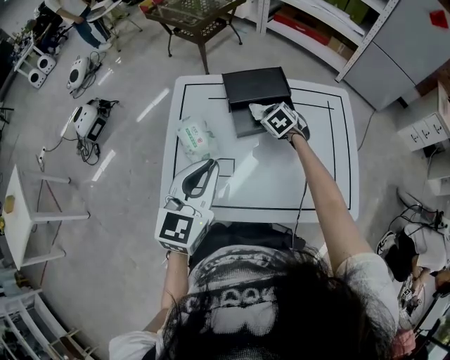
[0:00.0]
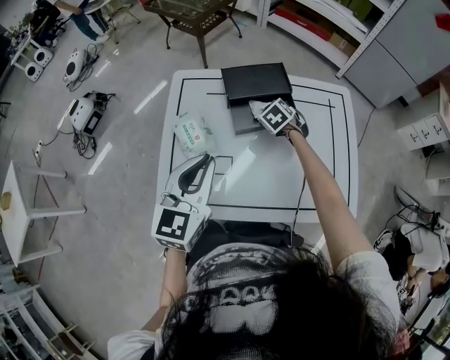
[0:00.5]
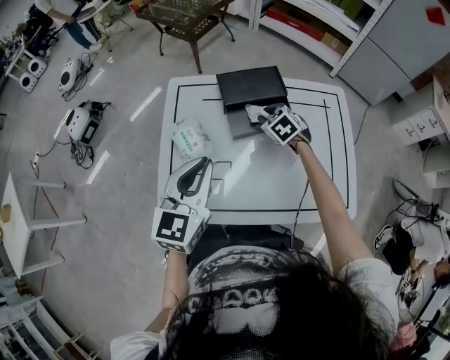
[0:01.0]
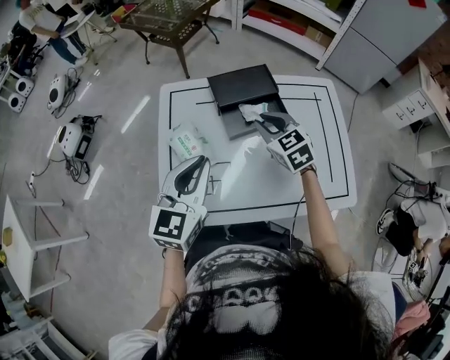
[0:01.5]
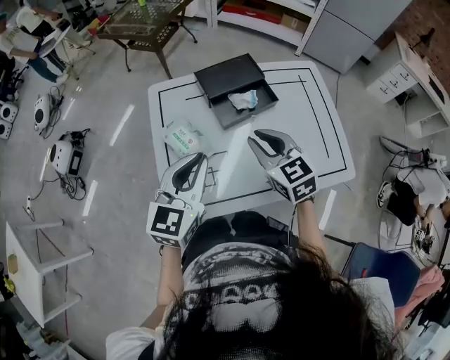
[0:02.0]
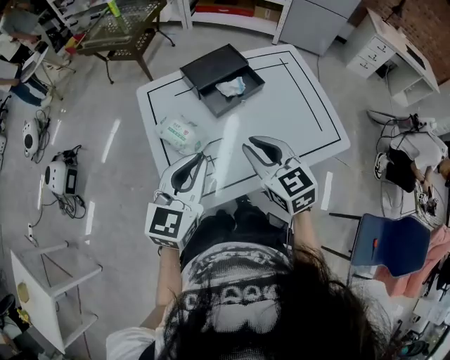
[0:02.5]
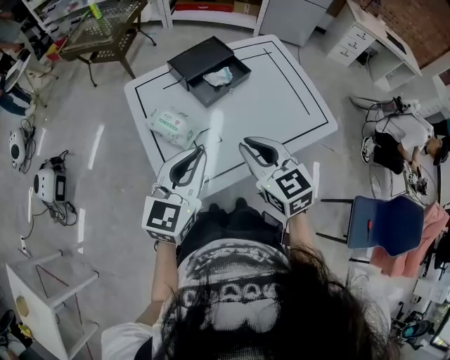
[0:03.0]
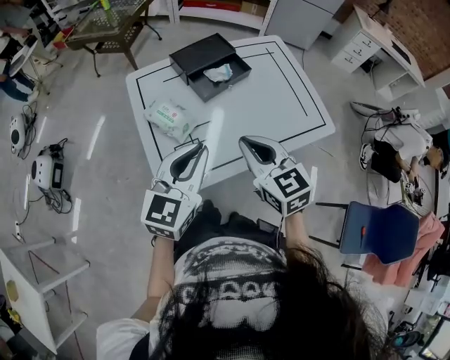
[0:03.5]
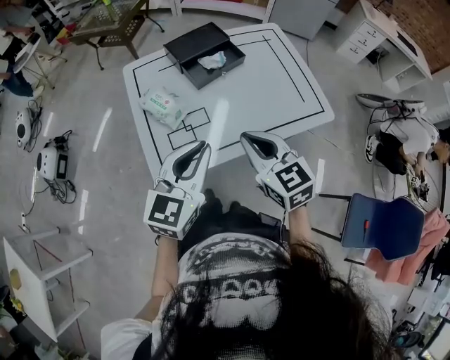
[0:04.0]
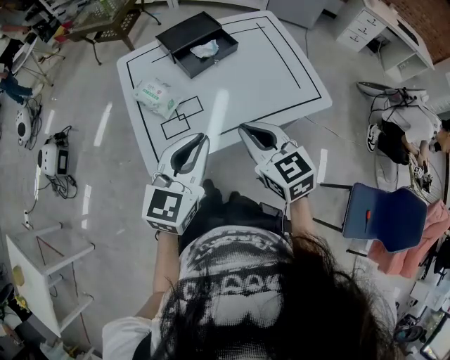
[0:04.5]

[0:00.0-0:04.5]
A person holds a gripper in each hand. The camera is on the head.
0:00.0 to 0:02.0: The right gripper is displaced backward and upward by some 25 cm, and swivels roughly 40 degrees.
0:02.0 to 0:04.5: The left gripper heads backward and to the right, covering approximately 20 cm, while the right gripper is displaced backward by some 20 cm.

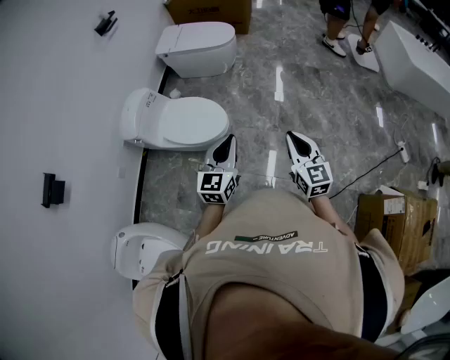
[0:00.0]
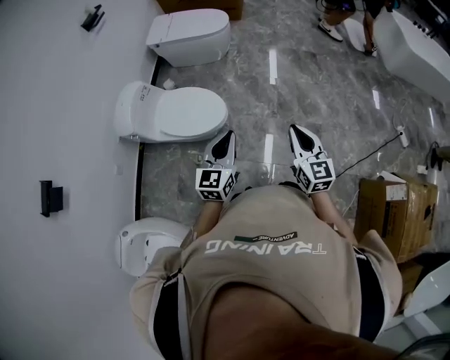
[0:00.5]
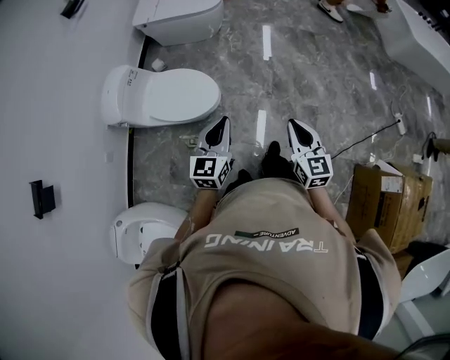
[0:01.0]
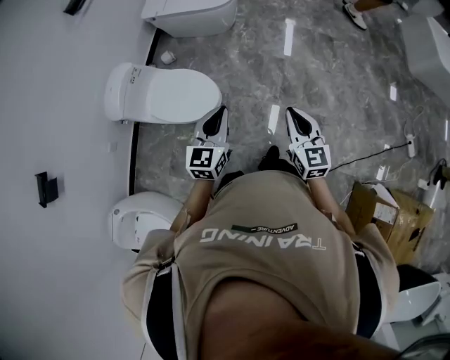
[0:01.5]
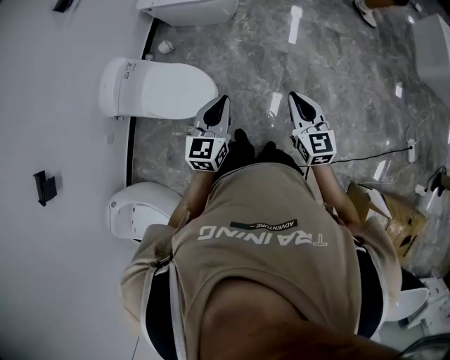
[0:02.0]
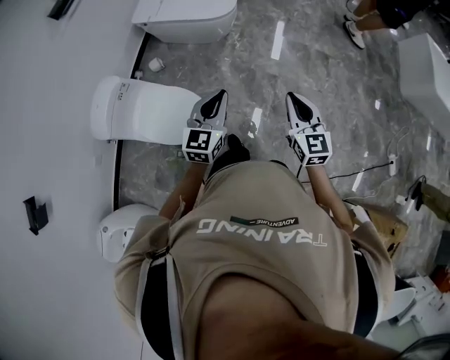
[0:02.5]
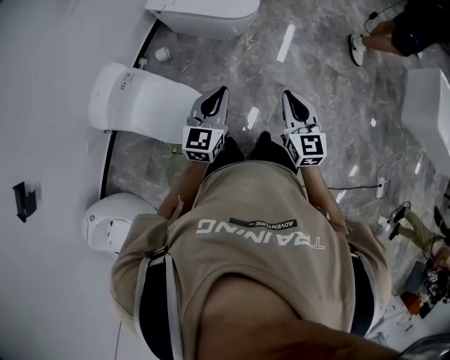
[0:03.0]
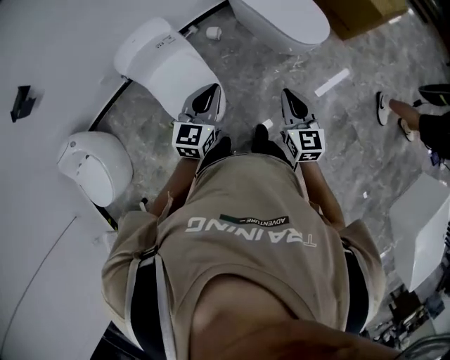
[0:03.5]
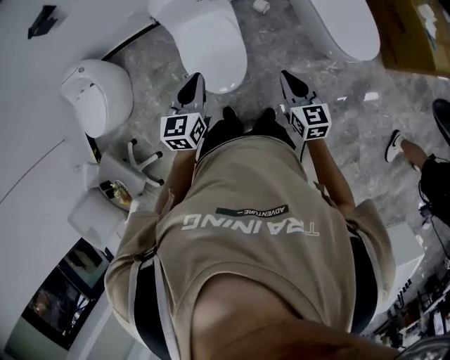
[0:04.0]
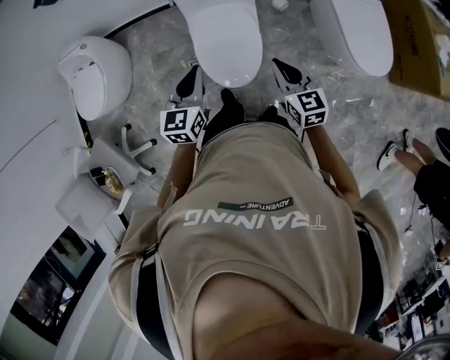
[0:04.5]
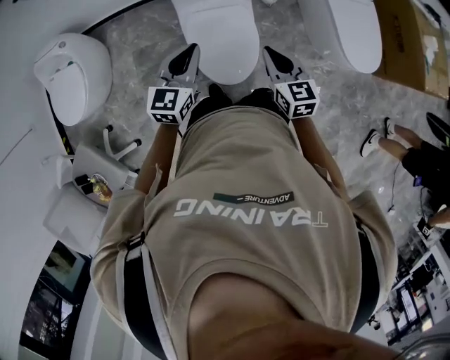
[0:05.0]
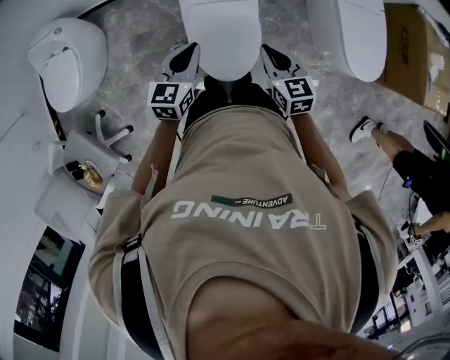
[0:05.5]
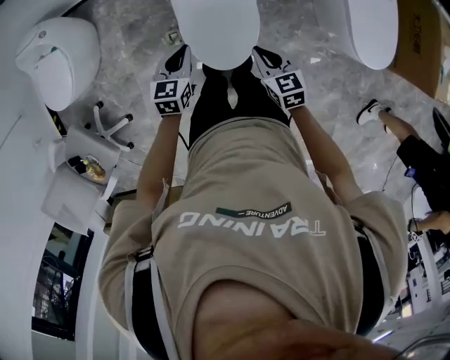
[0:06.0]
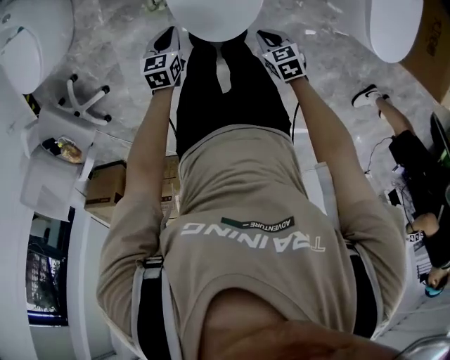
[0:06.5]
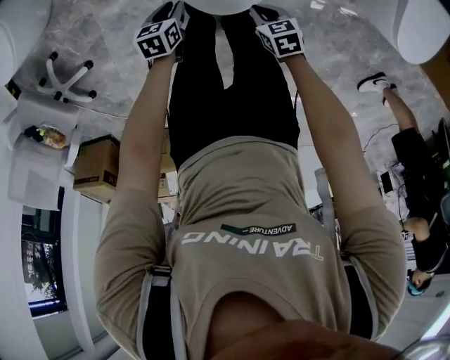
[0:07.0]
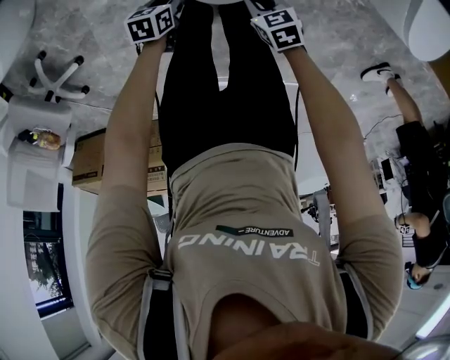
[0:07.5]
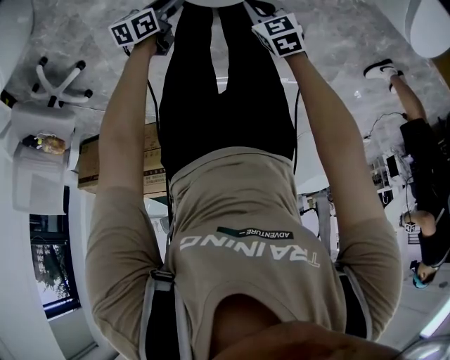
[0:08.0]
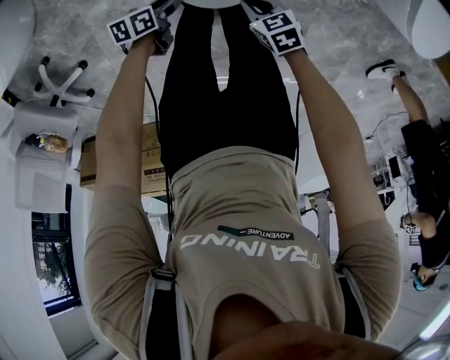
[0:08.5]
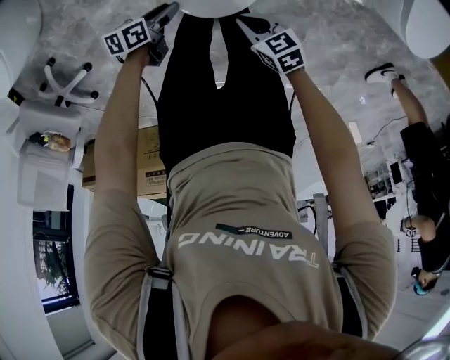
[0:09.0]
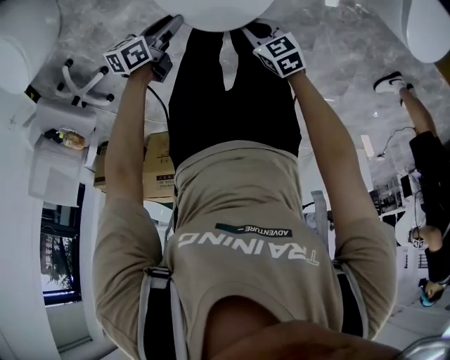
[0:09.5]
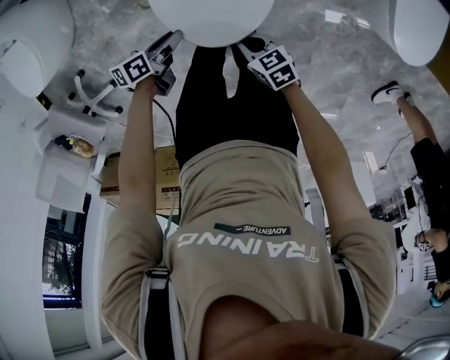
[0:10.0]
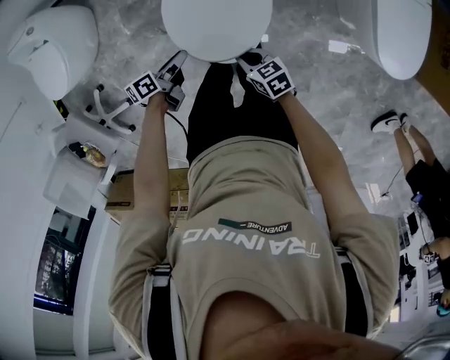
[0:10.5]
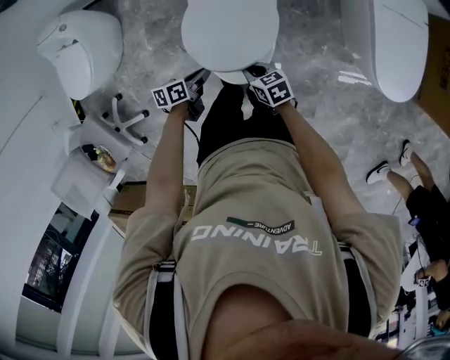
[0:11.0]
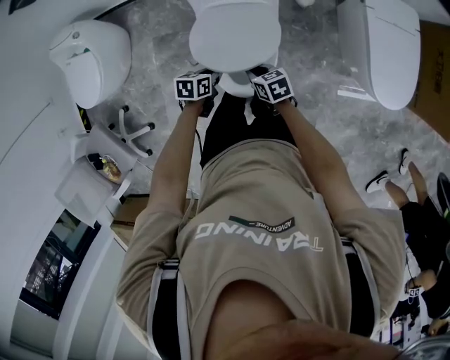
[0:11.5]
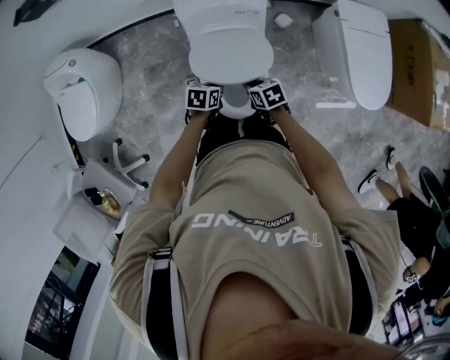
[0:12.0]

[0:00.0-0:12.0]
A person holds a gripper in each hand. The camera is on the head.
0:00.0 to 0:02.0: Both grippers travel together forward, some 25 cm.
0:02.0 to 0:04.0: The right gripper changes place by approximately 40 cm, and changes its angle by about 60 degrees. Meanwhile the left gripper changes place by roughly 25 cm, and swivels some 70 degrees.
0:04.0 to 0:06.0: The right gripper travels to the left, forward and downward by roughly 25 cm, and changes its angle by roughly 30 degrees; the left gripper is displaced downward, to the left and forward by approximately 25 cm.
0:06.0 to 0:08.0: The two grippers go about 35 cm downward. The left gripper rolls counterclockwise, seen from behind, by some 40 degrees, and opens; the right gripper changes its angle by some 30 degrees.
0:08.0 to 0:10.0: Both grippers move upward, roughly 15 cm.
0:10.0 to 0:12.0: The right gripper moves forward and upward, approximately 20 cm; the left gripper moves upward, forward and to the right, roughly 20 cm, rotates approximately 40 degrees, and closes its fingers.

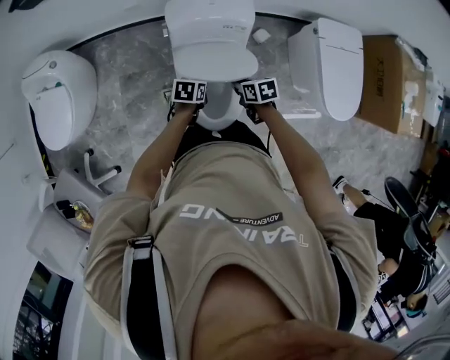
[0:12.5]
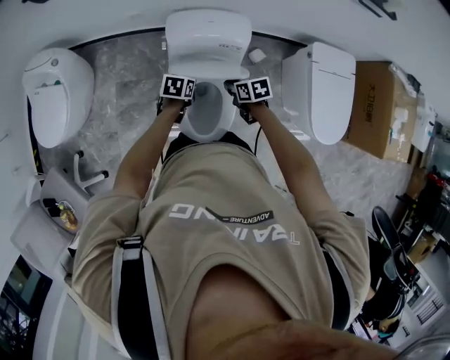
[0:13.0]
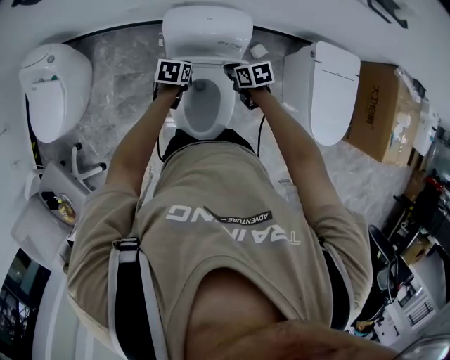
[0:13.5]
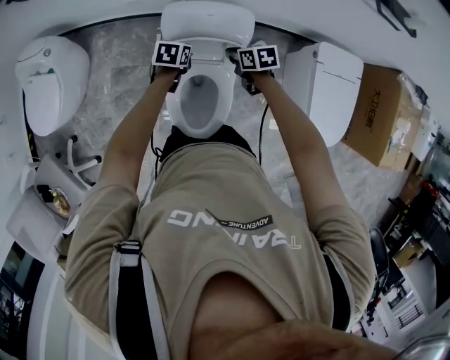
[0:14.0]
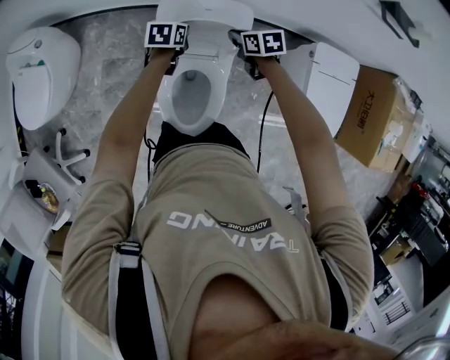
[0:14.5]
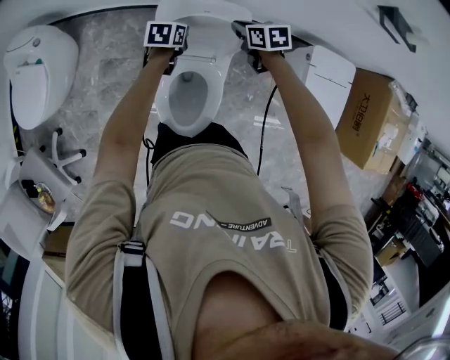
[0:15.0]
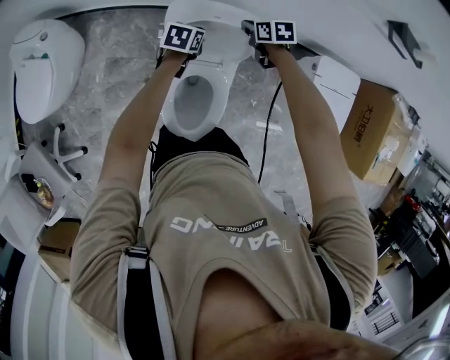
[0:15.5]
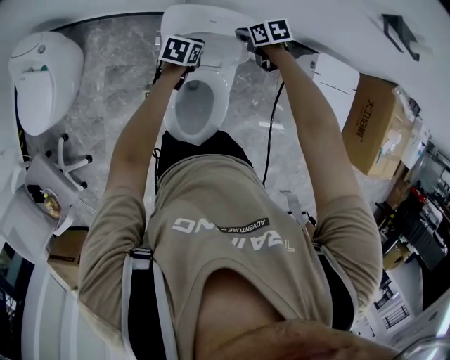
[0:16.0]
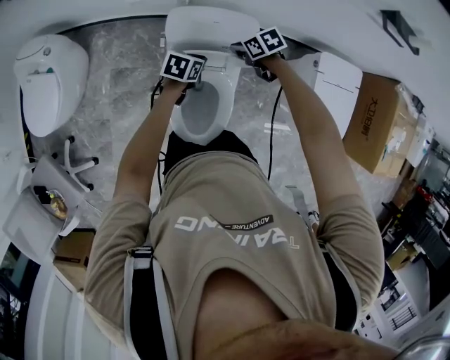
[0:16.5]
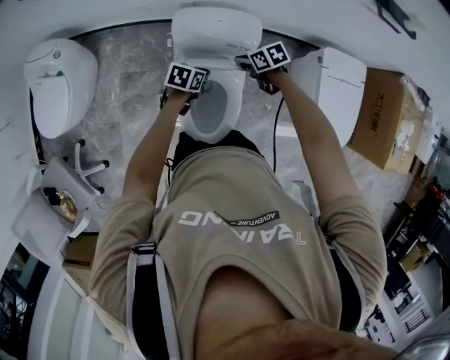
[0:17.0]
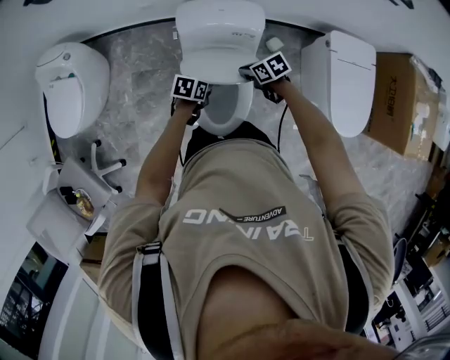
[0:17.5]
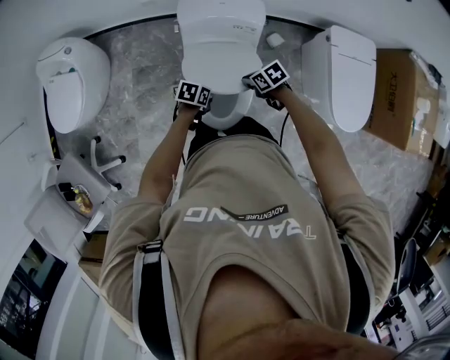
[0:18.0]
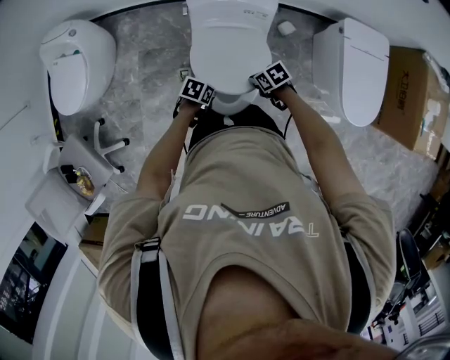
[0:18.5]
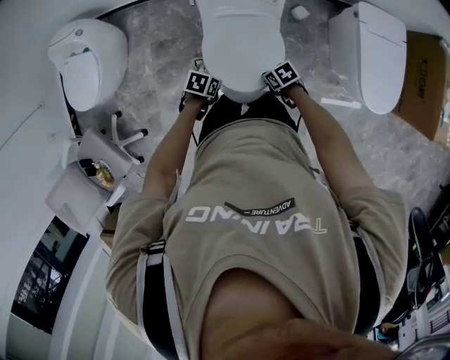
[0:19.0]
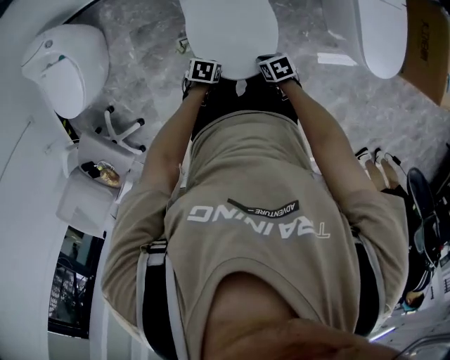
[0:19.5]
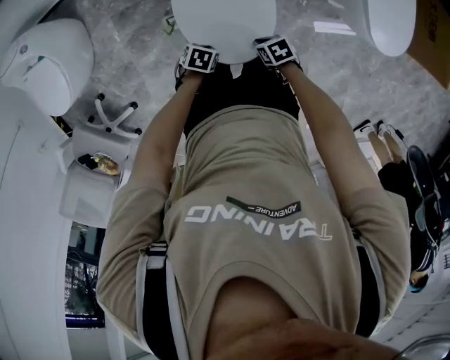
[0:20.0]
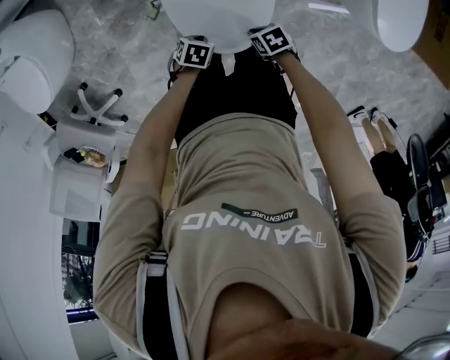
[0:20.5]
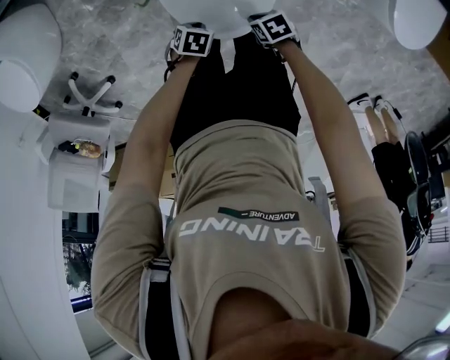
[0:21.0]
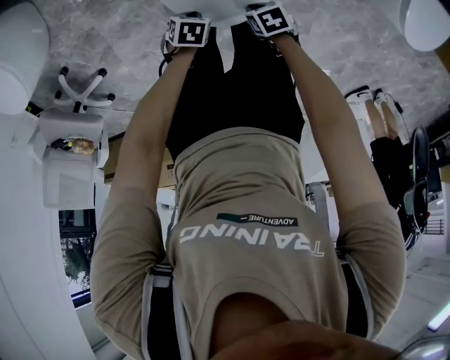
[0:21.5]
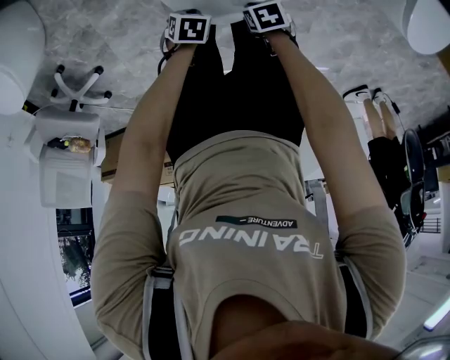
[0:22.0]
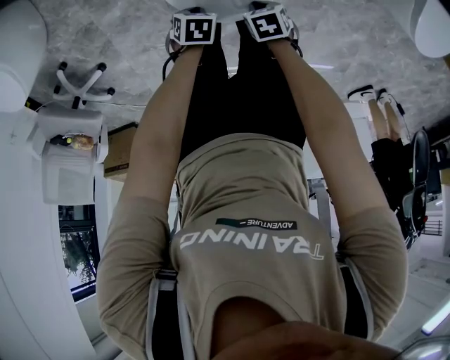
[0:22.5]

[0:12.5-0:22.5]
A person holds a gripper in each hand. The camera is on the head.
0:12.5 to 0:14.5: Both grippers move forward, approximately 25 cm.
0:14.5 to 0:16.5: The left gripper ends up roughly 5 cm from where it was.
0:16.5 to 0:18.5: The right gripper moves roughly 30 cm; the left gripper shifts by about 30 cm, and changes its angle by roughly 20 degrees.
0:18.5 to 0:20.5: The two grippers go approximately 15 cm downward.
0:20.5 to 0:22.5: The grippers both shift downward by some 10 cm.
